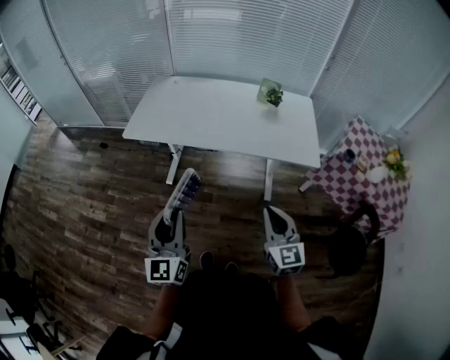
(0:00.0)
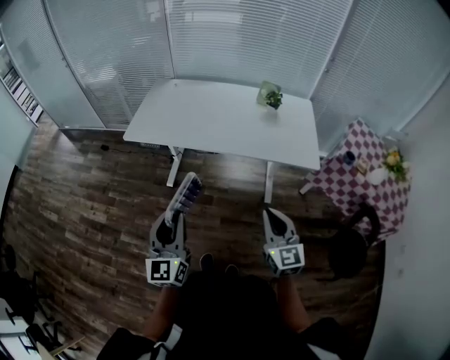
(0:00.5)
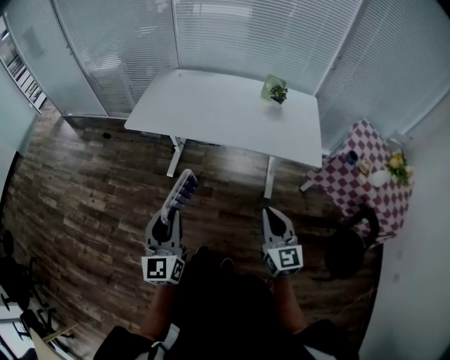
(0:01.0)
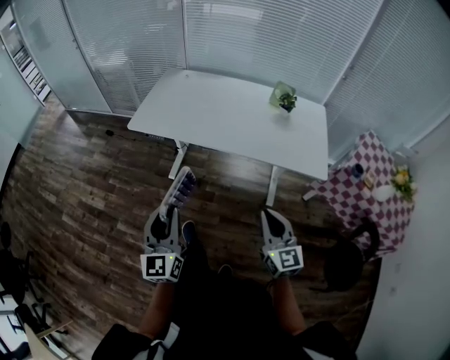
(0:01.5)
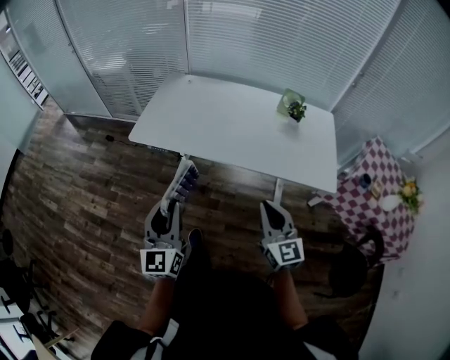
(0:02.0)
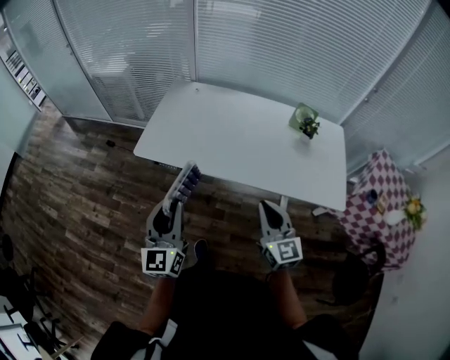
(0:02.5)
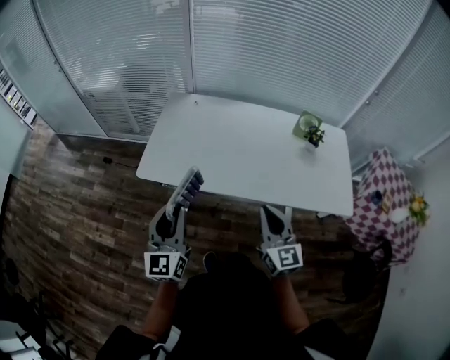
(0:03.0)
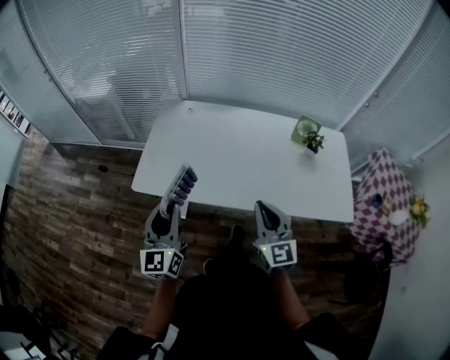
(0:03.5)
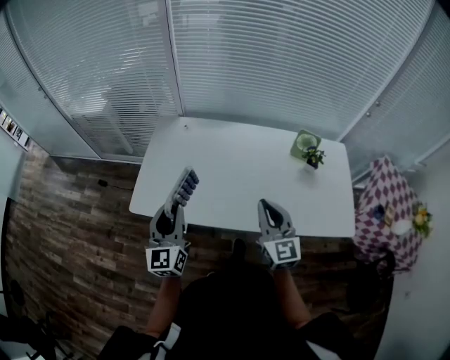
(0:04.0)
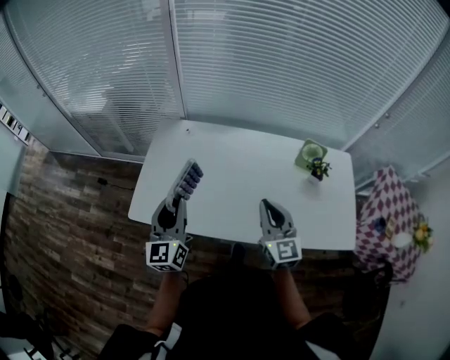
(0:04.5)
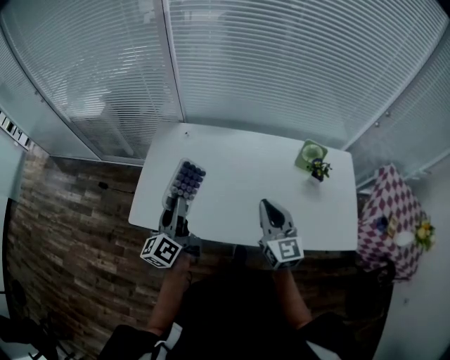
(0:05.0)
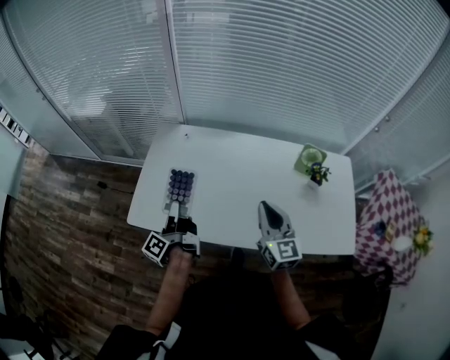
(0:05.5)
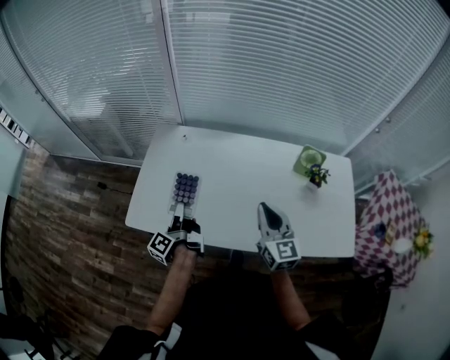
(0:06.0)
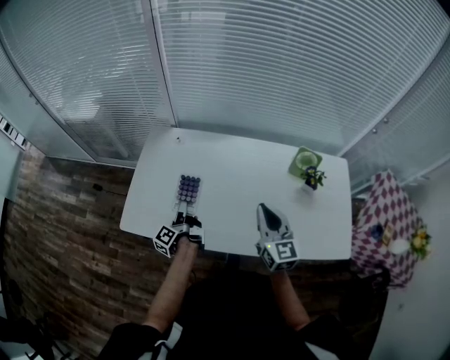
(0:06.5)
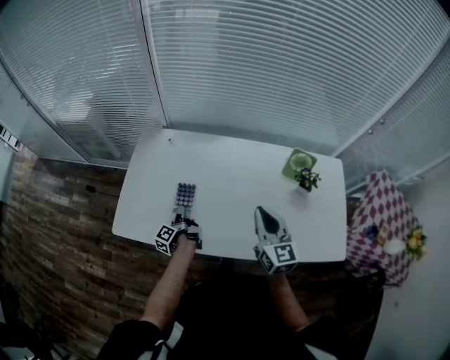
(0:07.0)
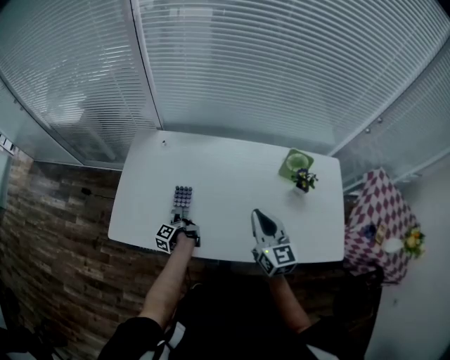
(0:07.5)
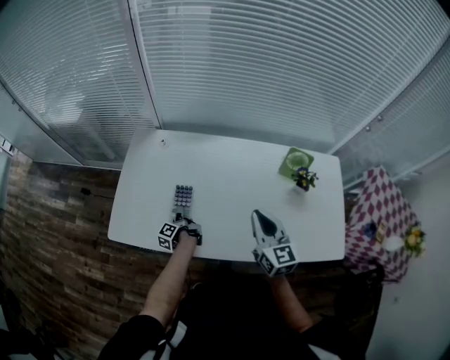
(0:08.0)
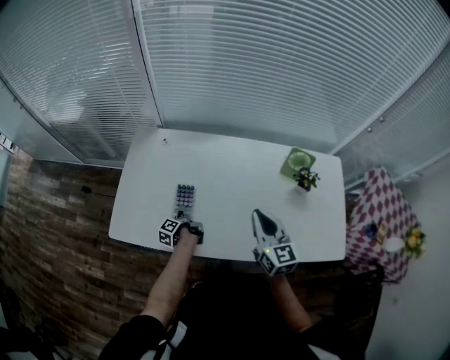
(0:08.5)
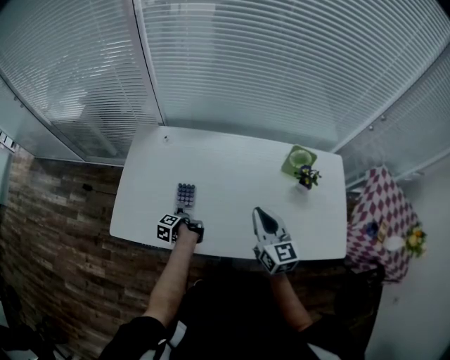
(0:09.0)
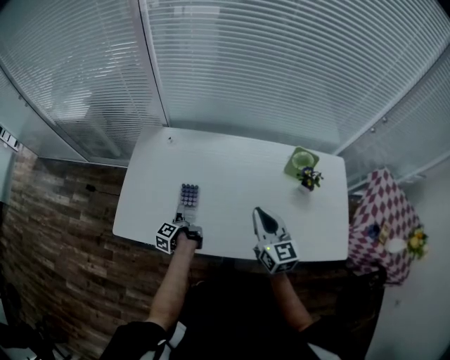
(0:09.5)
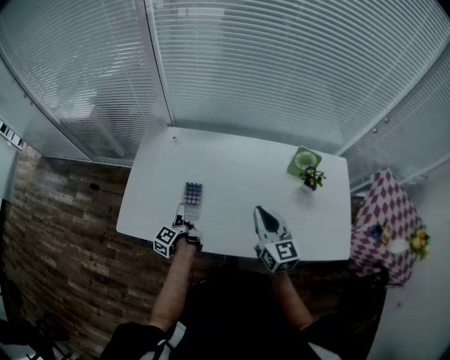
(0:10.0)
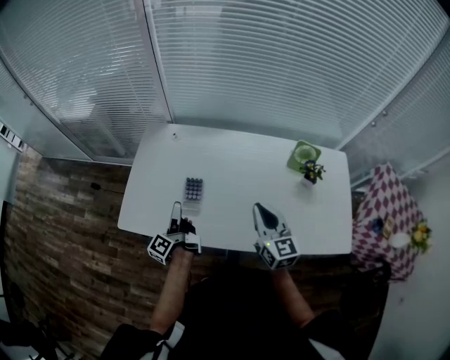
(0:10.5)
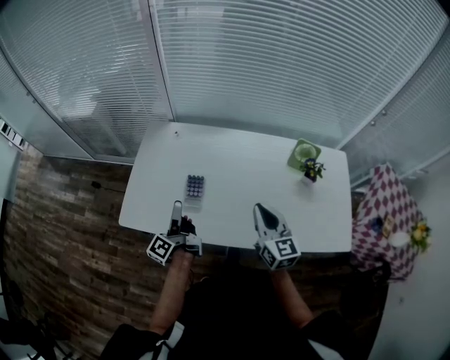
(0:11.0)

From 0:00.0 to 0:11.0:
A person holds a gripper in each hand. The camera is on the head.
From 0:00.0 to 0:02.0: The grippers both shift forward by some 10 cm.
From 0:02.0 to 0:03.5: The left gripper moves forward, approximately 25 cm. The right gripper heads forward and to the left, covering some 25 cm.
From 0:03.5 to 0:05.5: The left gripper travels forward and downward by some 20 cm, and rolls counterclockwise, seen from behind, by some 80 degrees; the right gripper heads forward, covering about 15 cm.
From 0:05.5 to 0:07.5: The right gripper shifts roughly 5 cm to the right. Meanwhile the left gripper moves downward, roughly 25 cm, and turns by some 30 degrees.
From 0:07.5 to 0:09.0: The left gripper rotates some 20 degrees, and opens up.
From 0:09.0 to 0:11.0: The left gripper goes about 25 cm upward, and tips its fingers upward by some 50 degrees.

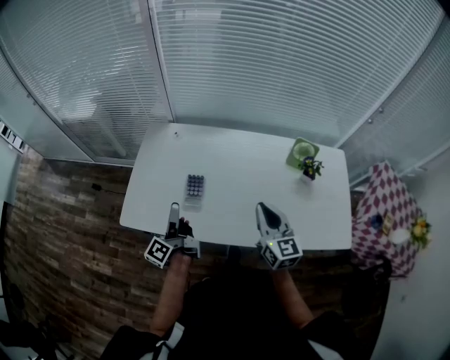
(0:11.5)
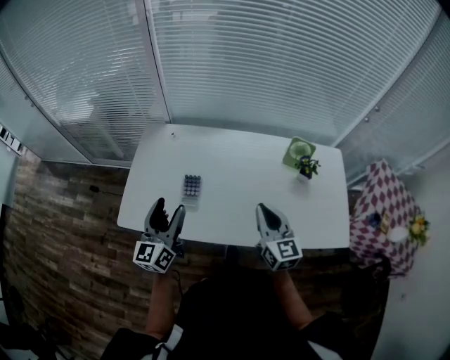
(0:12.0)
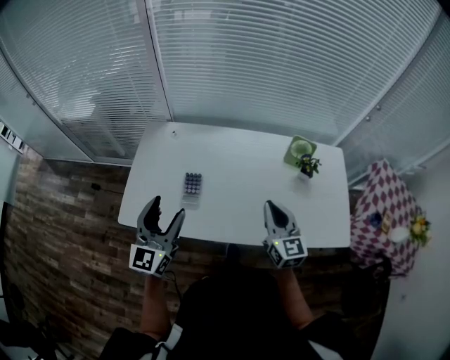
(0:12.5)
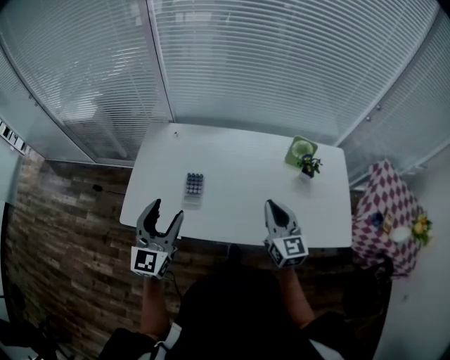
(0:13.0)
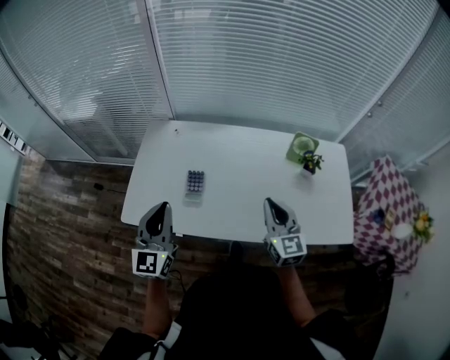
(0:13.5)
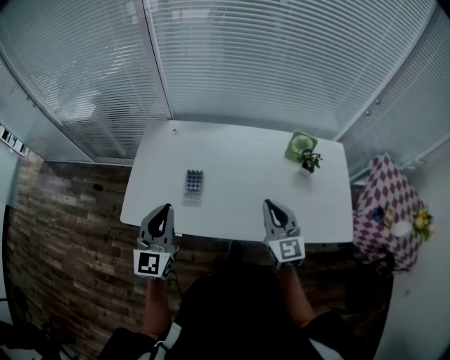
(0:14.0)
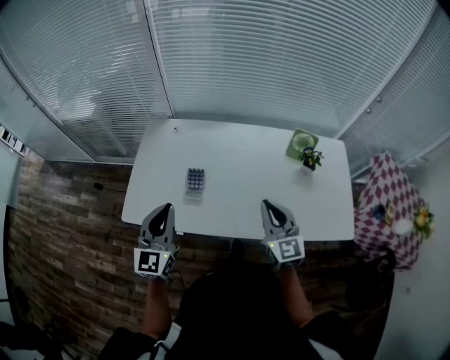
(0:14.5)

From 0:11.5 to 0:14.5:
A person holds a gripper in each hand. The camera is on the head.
From 0:11.5 to 0:13.0: The left gripper shifts some 10 cm upward, and rolls clockwise, seen from behind, by some 80 degrees.
From 0:13.0 to 0:14.5: The left gripper closes up.

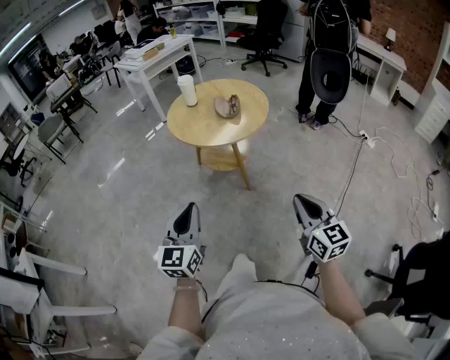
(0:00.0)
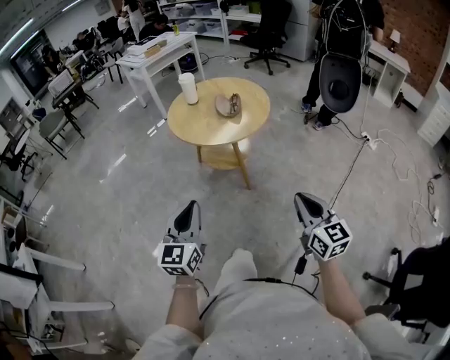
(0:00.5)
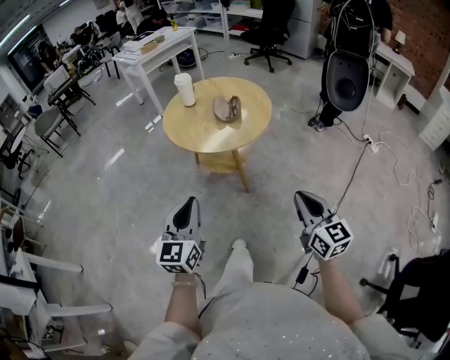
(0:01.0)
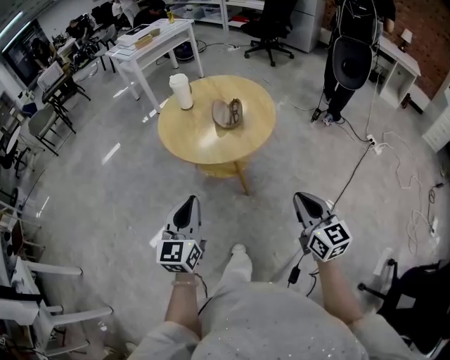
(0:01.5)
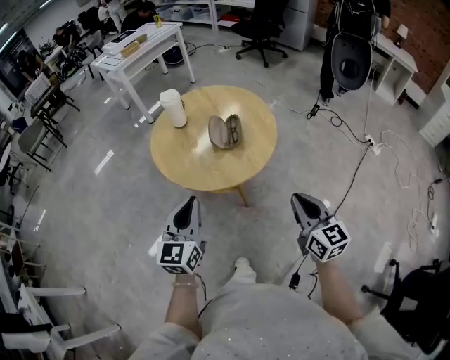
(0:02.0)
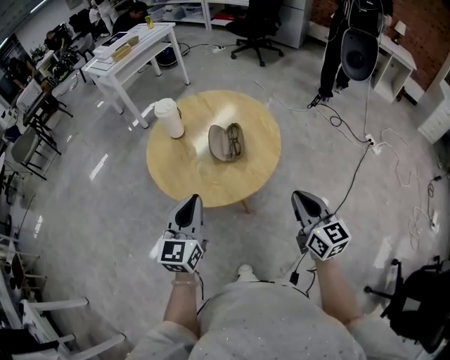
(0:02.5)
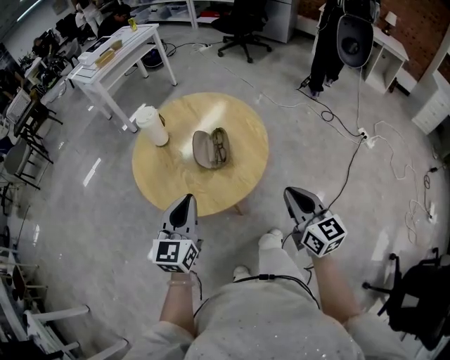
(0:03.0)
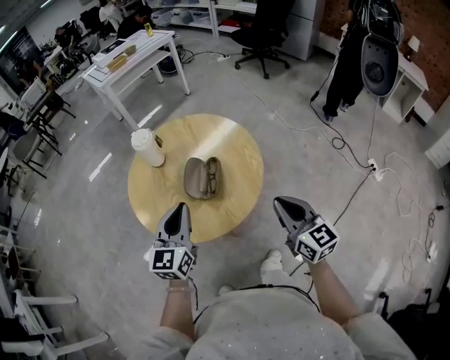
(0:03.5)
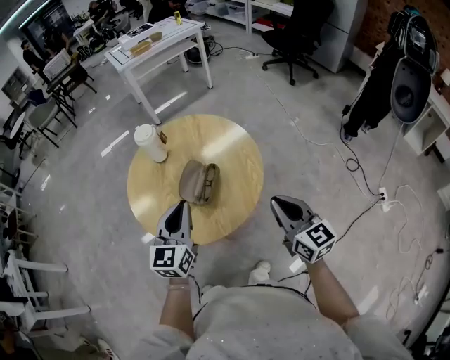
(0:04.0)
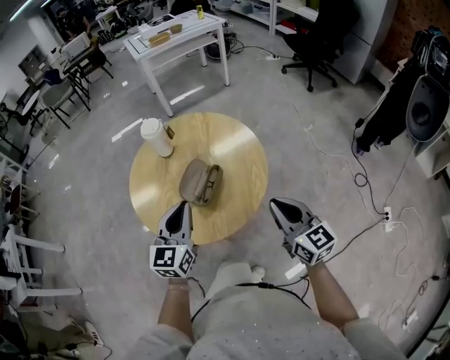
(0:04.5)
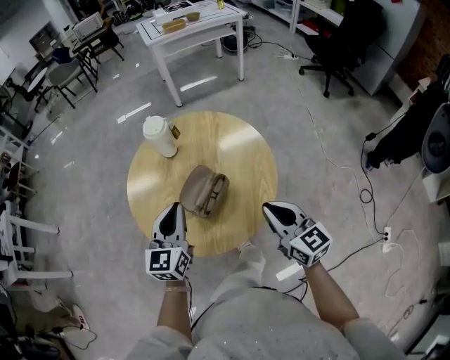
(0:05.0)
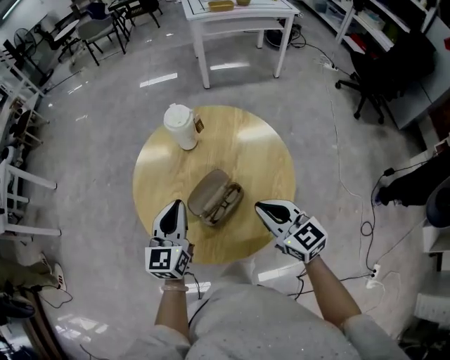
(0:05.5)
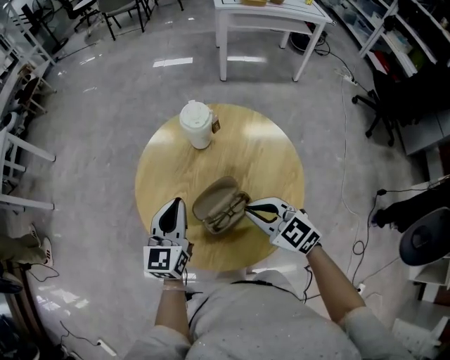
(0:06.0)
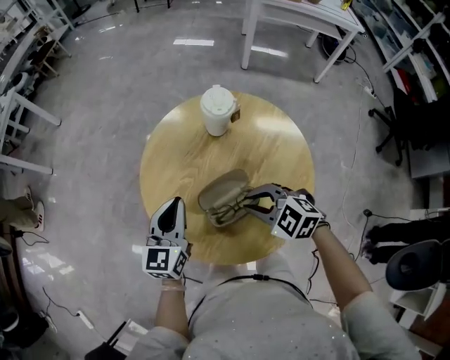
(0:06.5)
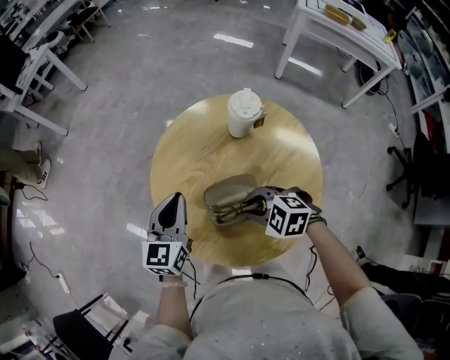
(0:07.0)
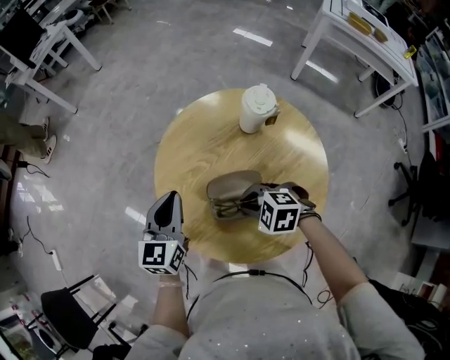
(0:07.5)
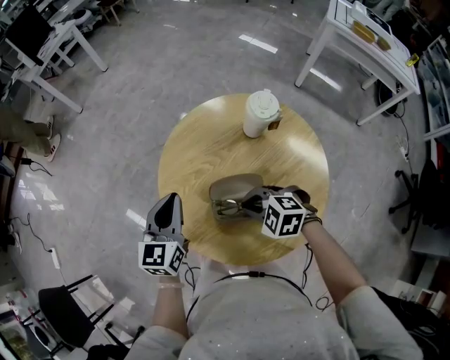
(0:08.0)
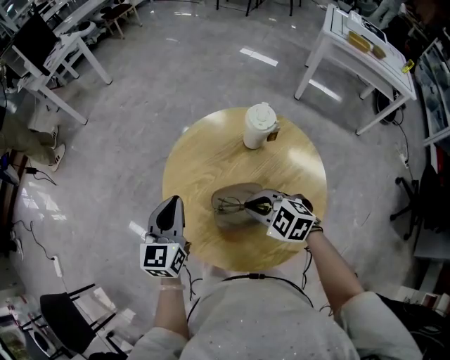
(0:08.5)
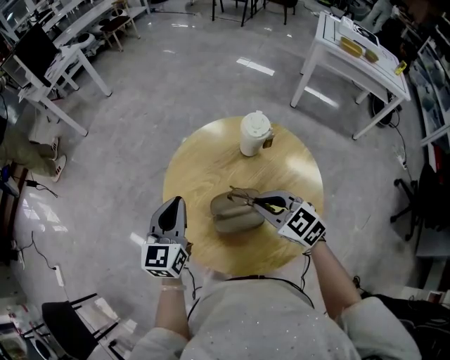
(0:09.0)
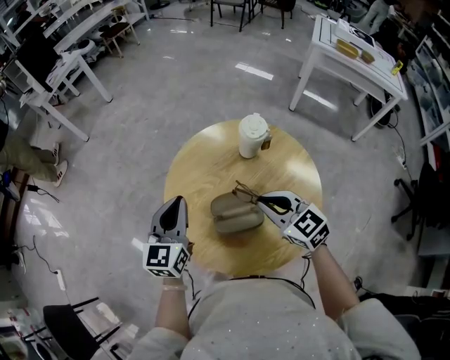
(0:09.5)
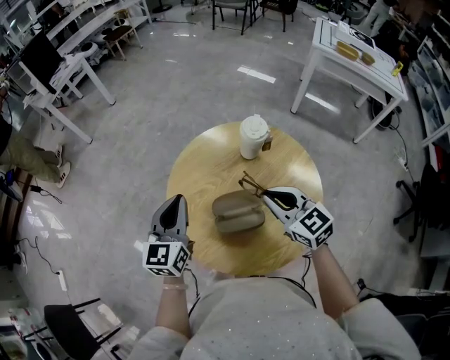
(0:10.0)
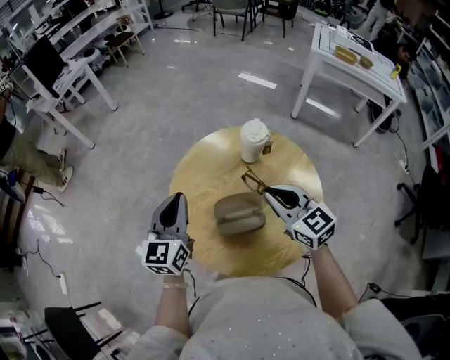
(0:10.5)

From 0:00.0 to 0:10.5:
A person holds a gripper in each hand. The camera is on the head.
From 0:00.0 to 0:02.0: Both grippers move forward, approximately 25 cm.
From 0:02.0 to 0:04.0: The two grippers go some 25 cm forward and to the right. The right gripper turns by roughly 20 degrees.
From 0:04.0 to 0:06.5: The right gripper ends up approximately 25 cm from where it was, and points its fingers some 40 degrees further downward. The left gripper changes place by some 10 cm, and swivels about 40 degrees.
From 0:06.5 to 0:08.5: The left gripper moves approximately 5 cm, and swivels approximately 20 degrees.
From 0:08.5 to 0:10.5: The left gripper moves upward, about 5 cm. Meanwhile the right gripper travels upward and to the right by some 15 cm, and rotates approximately 40 degrees.

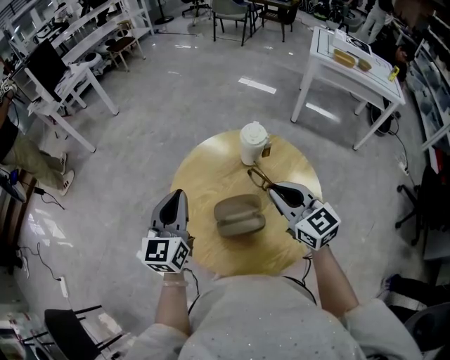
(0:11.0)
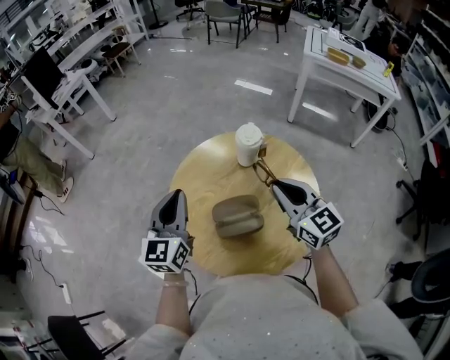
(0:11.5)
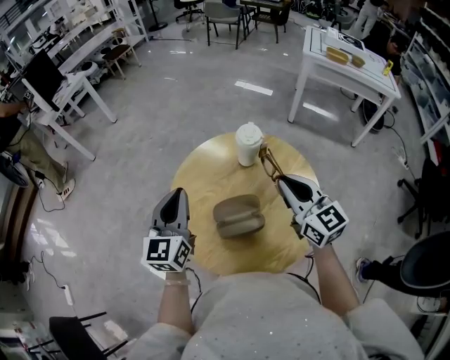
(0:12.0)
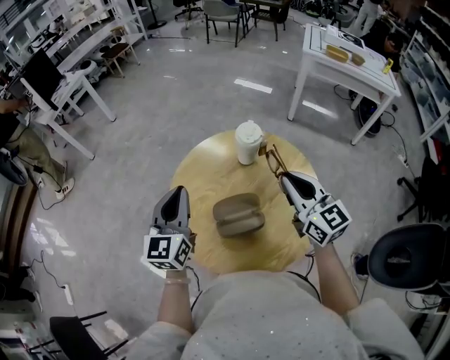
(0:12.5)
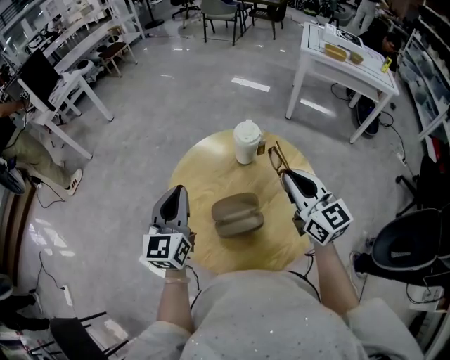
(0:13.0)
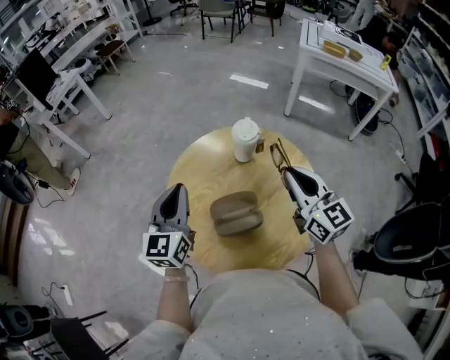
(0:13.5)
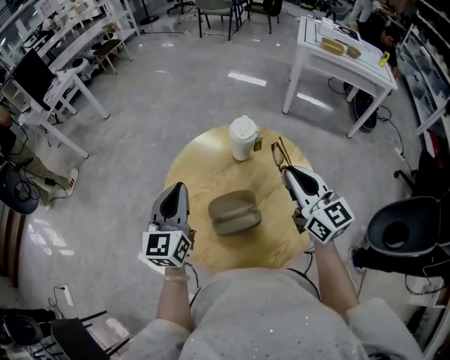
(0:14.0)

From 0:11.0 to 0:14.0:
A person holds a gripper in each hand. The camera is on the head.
From 0:11.0 to 0:12.5: The right gripper ends up about 5 cm from where it was.
From 0:12.5 to 0:14.0: There are only small adjustments of the grippers.
